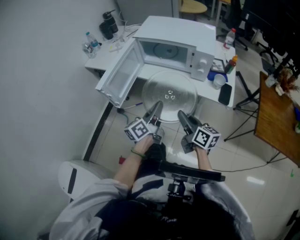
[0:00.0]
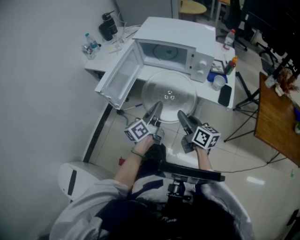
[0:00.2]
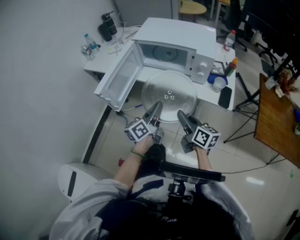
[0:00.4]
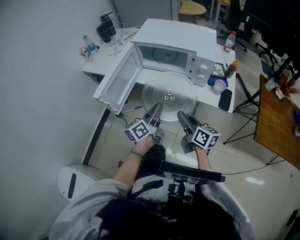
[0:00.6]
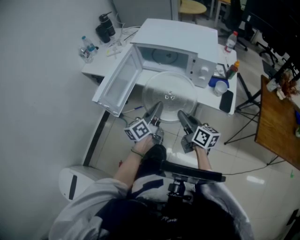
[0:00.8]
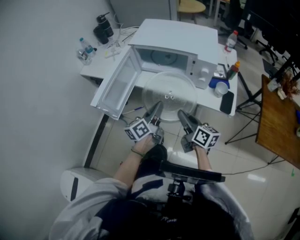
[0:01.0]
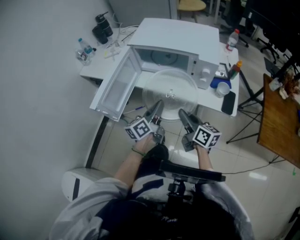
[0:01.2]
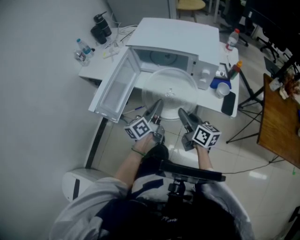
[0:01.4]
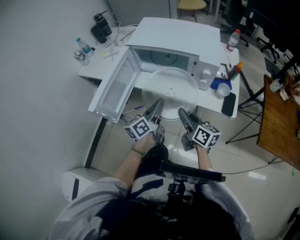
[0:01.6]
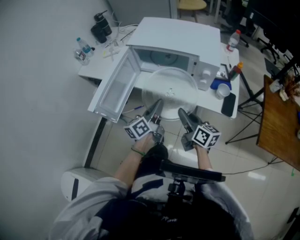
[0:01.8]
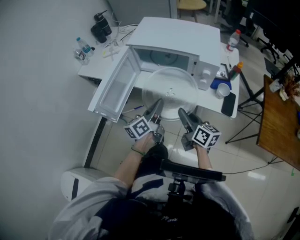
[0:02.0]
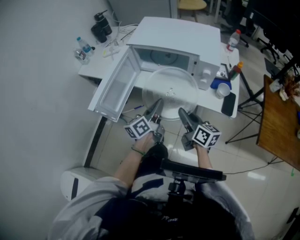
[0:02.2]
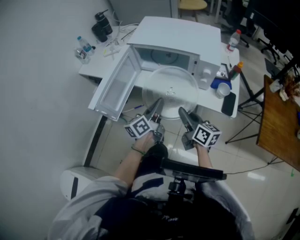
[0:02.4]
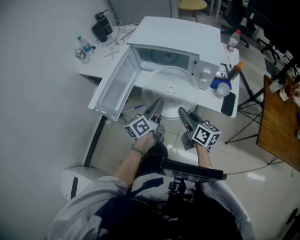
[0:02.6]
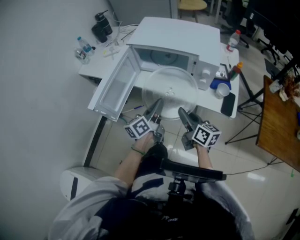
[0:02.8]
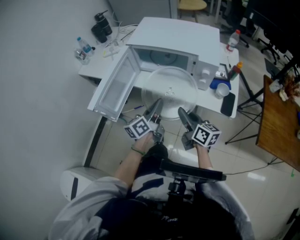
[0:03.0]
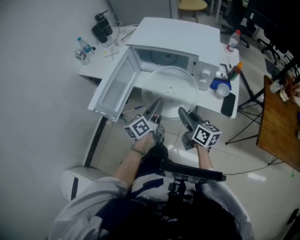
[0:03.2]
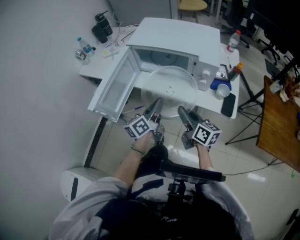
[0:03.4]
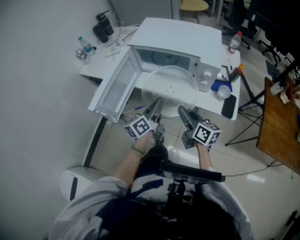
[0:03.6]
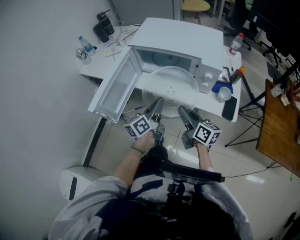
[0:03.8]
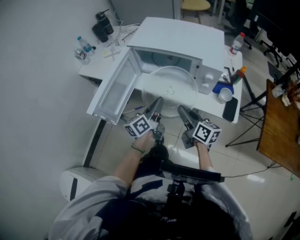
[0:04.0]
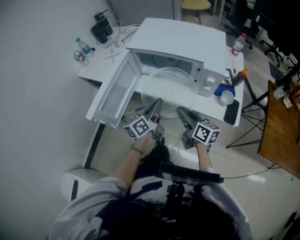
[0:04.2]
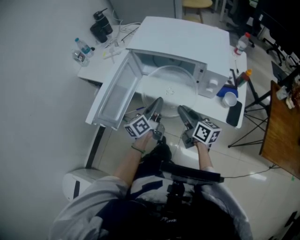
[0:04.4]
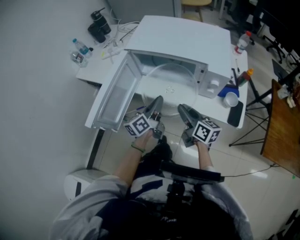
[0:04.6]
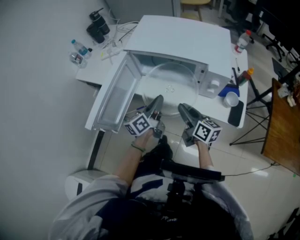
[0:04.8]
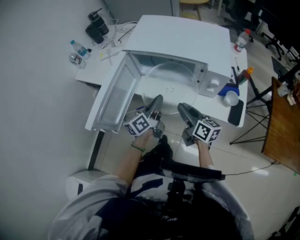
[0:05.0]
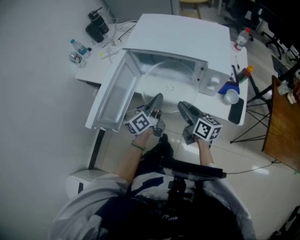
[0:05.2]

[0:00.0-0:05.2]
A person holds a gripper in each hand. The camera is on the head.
0:00.0 to 0:01.8: Both grippers travel together forward, some 10 cm.
0:01.8 to 0:03.4: The two grippers keep their place.
0:03.4 to 0:05.2: Both grippers travel together forward, about 10 cm.

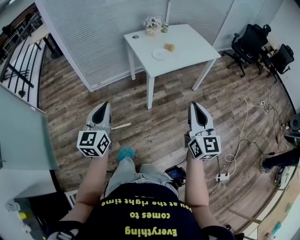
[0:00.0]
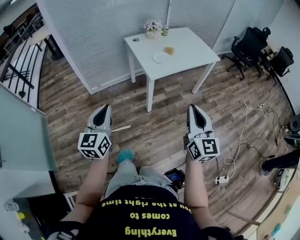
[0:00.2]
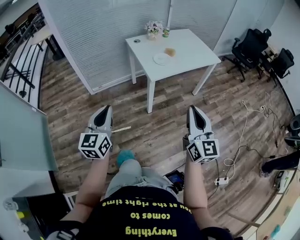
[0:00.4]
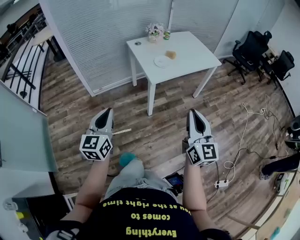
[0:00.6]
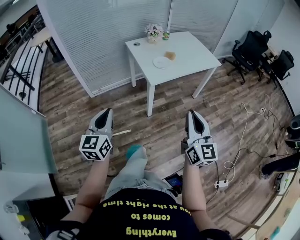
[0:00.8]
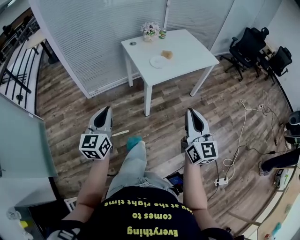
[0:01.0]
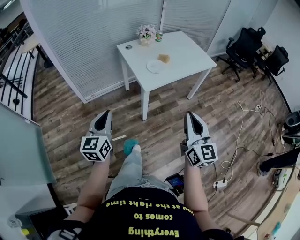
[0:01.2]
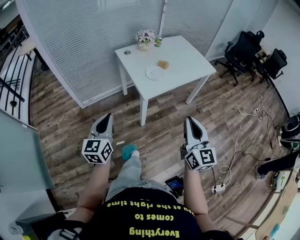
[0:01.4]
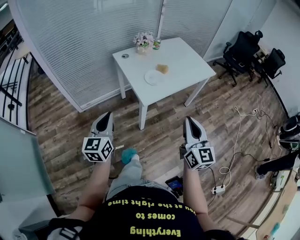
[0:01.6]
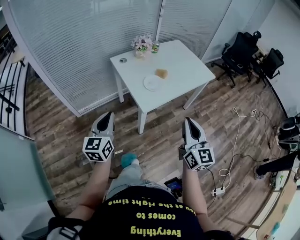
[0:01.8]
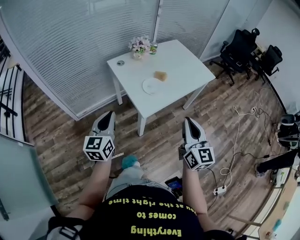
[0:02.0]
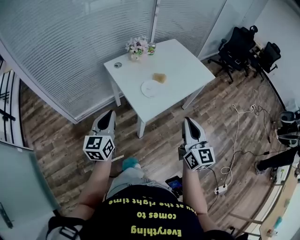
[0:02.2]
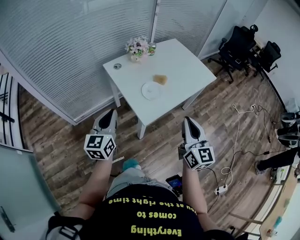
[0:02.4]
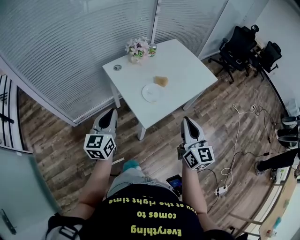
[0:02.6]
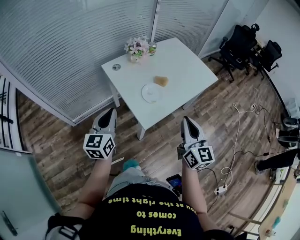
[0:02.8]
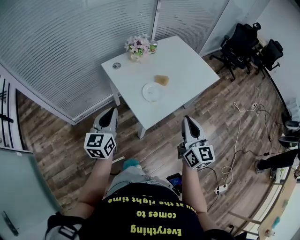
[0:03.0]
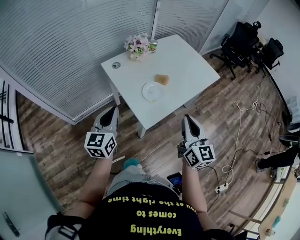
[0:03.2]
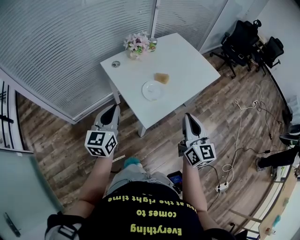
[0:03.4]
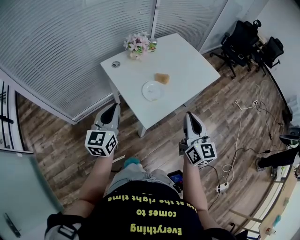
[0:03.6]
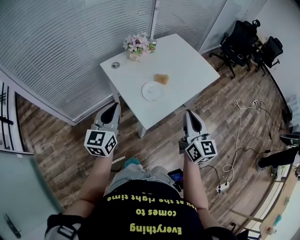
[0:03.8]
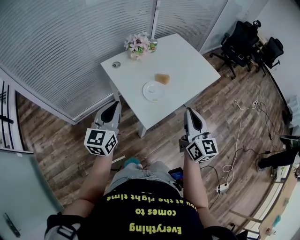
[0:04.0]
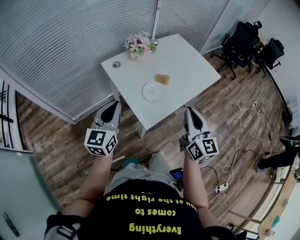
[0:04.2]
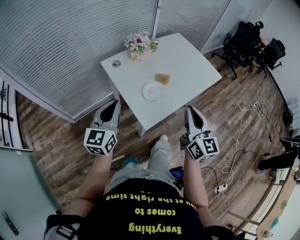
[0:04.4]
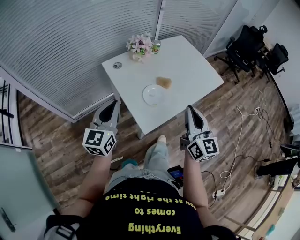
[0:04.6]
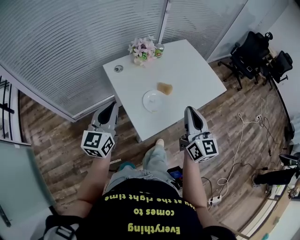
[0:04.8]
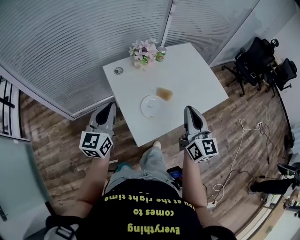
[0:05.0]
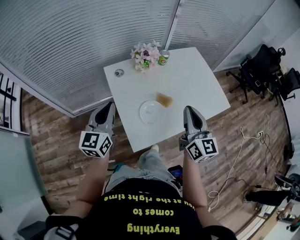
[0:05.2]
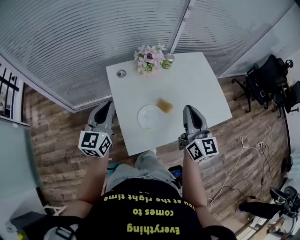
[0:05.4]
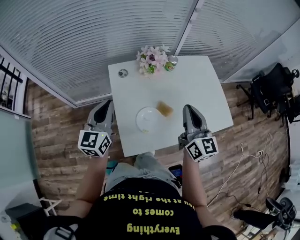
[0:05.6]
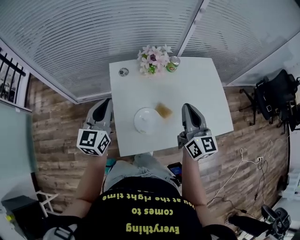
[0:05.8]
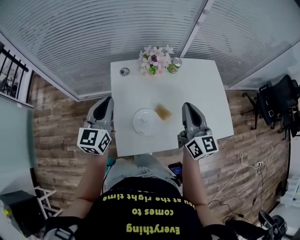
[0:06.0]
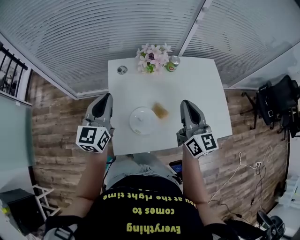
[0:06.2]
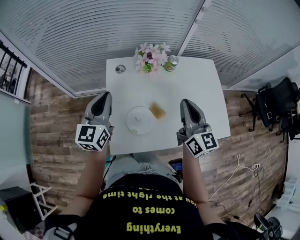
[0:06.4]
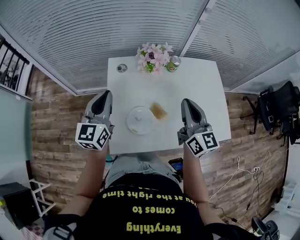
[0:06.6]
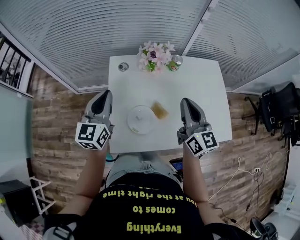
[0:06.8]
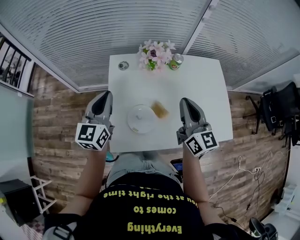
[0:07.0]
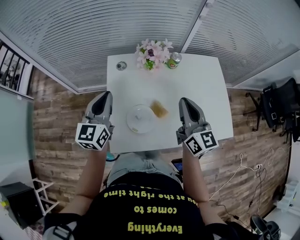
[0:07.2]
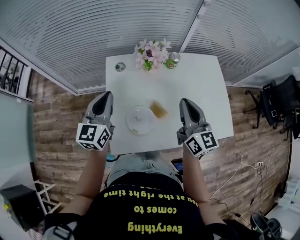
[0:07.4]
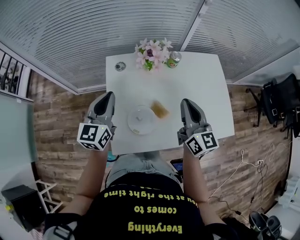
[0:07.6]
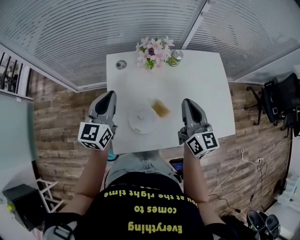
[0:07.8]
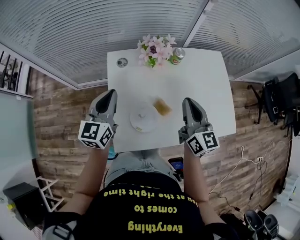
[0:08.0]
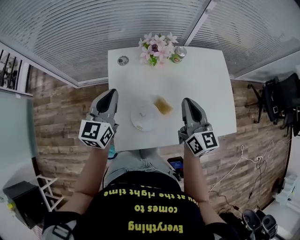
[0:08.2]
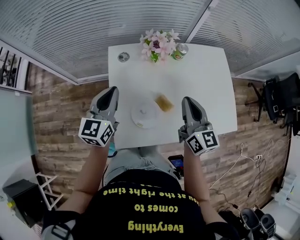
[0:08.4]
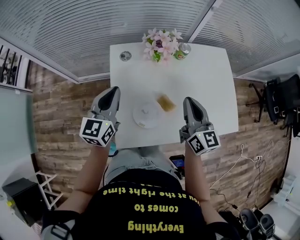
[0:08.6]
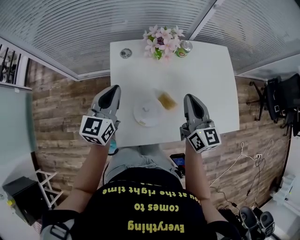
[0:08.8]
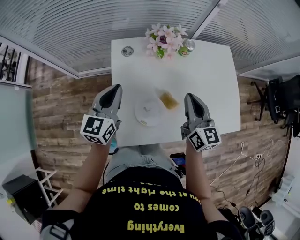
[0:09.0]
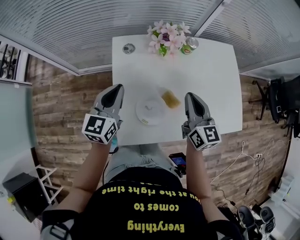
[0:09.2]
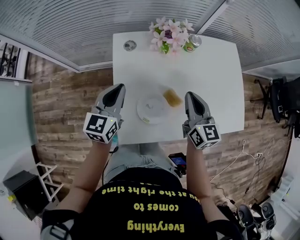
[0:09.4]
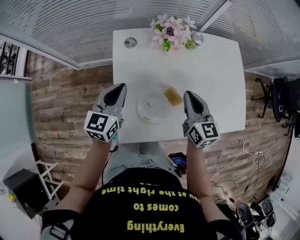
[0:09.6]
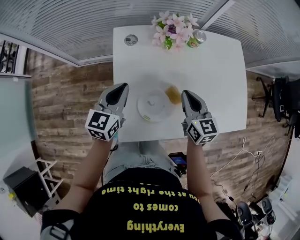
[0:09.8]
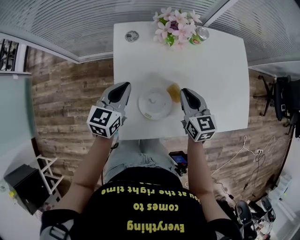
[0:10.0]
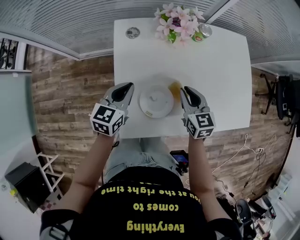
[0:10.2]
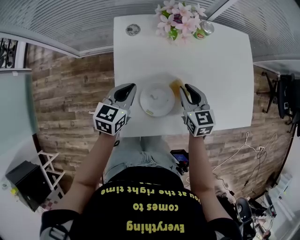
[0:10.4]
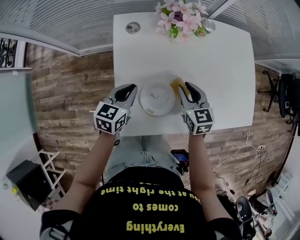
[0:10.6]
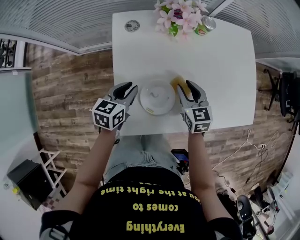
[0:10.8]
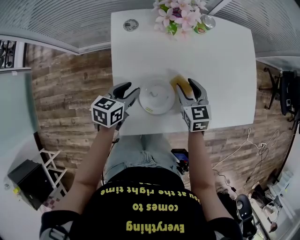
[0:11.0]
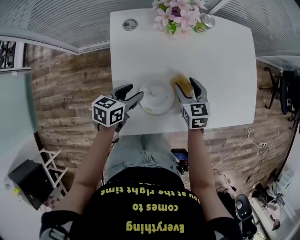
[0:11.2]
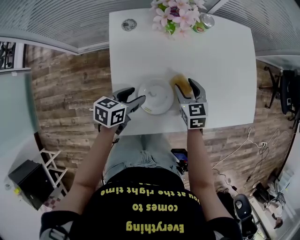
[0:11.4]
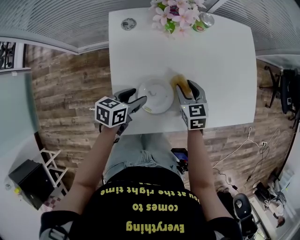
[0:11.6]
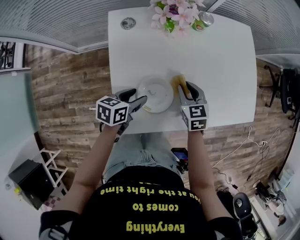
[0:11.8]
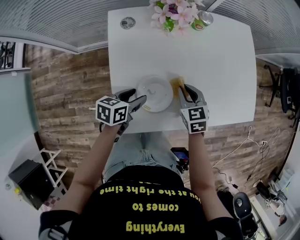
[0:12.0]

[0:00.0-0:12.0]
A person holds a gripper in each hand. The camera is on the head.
0:00.0 to 0:01.6: The grippers both shift forward by approximately 20 cm.
0:01.6 to 0:03.0: The grippers both shift forward by about 20 cm.
0:03.0 to 0:04.4: The grippers stay close to where they were, moving slightly.
0:04.4 to 0:06.0: The right gripper ends up about 30 cm from where it was, and swivels roughly 30 degrees. Meanwhile the left gripper changes place by about 15 cm, and rotates about 30 degrees.
0:06.0 to 0:07.6: The grippers stay close to where they were, moving slightly.
0:07.6 to 0:09.0: The right gripper ends up roughly 5 cm from where it was.
0:09.0 to 0:10.4: The two grippers go some 15 cm downward. The left gripper turns by about 20 degrees; the right gripper swivels approximately 30 degrees.
0:10.4 to 0:12.0: Both grippers move downward, approximately 5 cm. The left gripper rotates about 30 degrees, and opens; the right gripper opens, then closes once more.

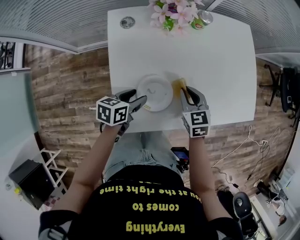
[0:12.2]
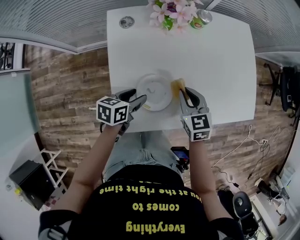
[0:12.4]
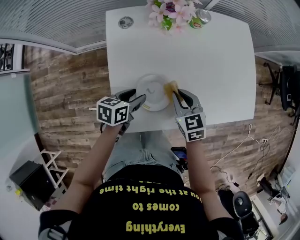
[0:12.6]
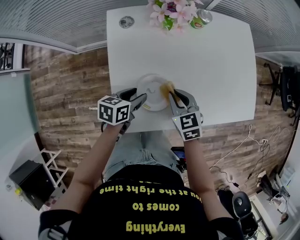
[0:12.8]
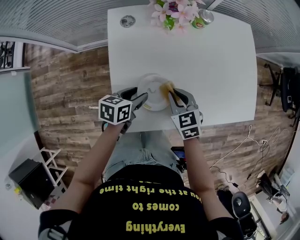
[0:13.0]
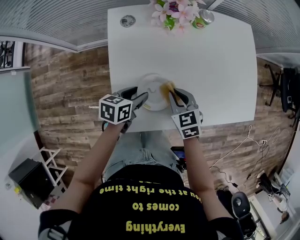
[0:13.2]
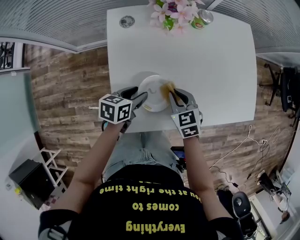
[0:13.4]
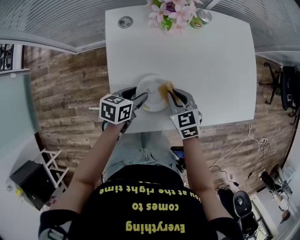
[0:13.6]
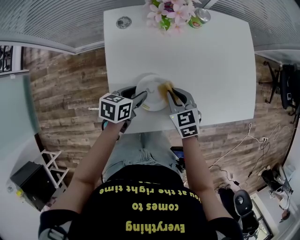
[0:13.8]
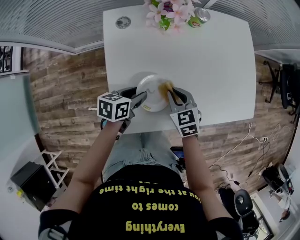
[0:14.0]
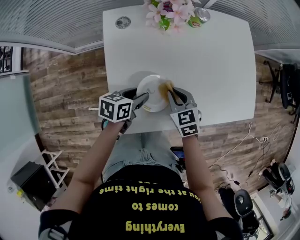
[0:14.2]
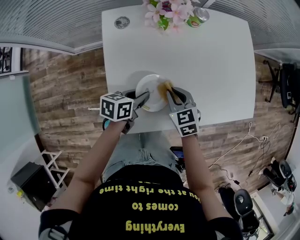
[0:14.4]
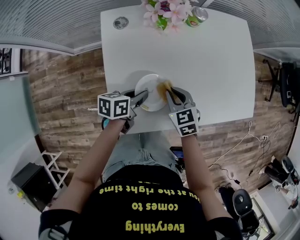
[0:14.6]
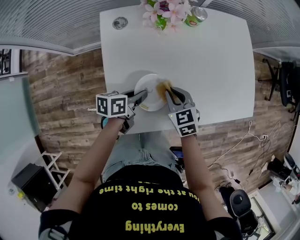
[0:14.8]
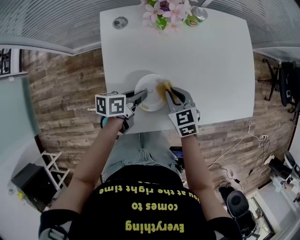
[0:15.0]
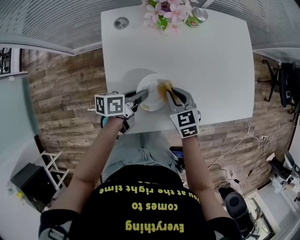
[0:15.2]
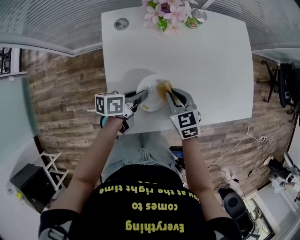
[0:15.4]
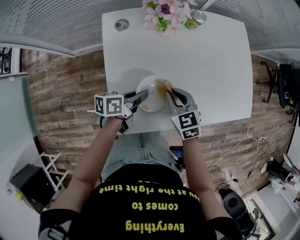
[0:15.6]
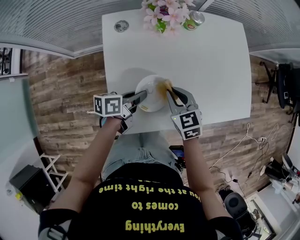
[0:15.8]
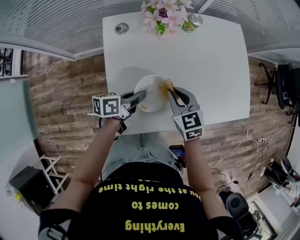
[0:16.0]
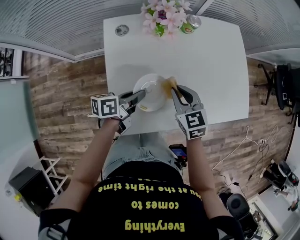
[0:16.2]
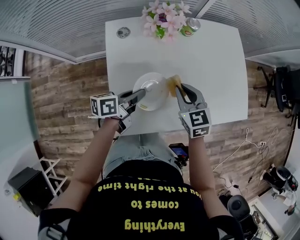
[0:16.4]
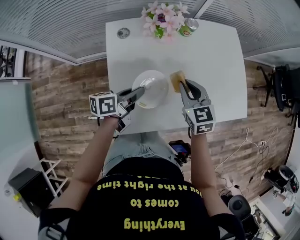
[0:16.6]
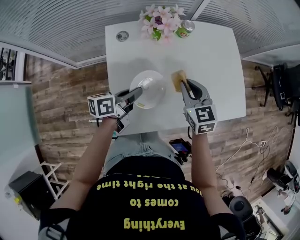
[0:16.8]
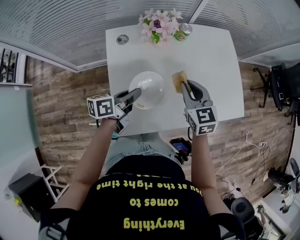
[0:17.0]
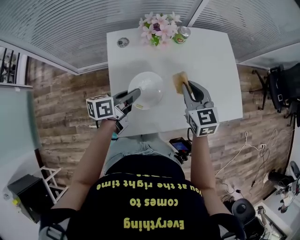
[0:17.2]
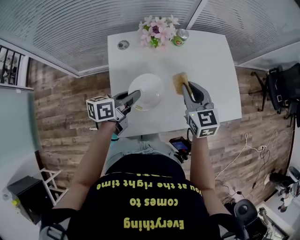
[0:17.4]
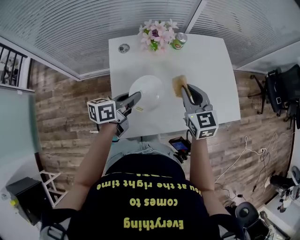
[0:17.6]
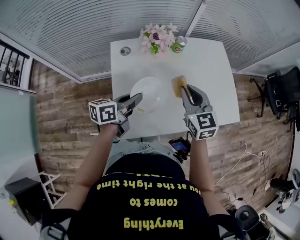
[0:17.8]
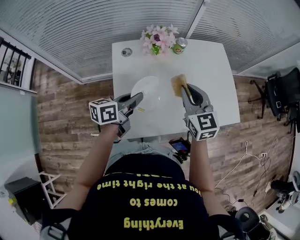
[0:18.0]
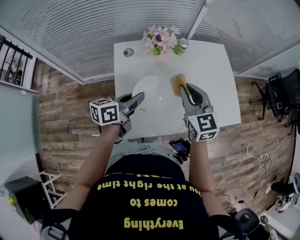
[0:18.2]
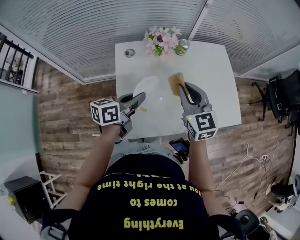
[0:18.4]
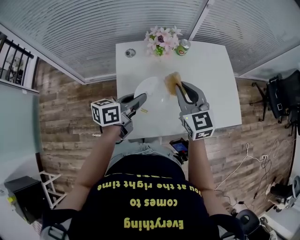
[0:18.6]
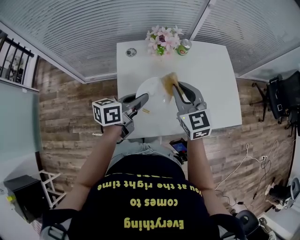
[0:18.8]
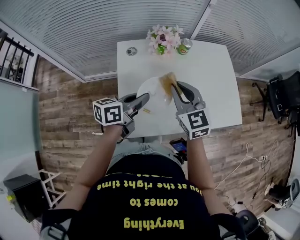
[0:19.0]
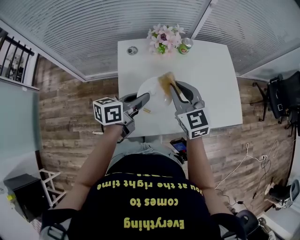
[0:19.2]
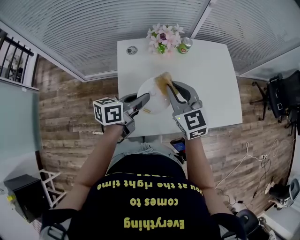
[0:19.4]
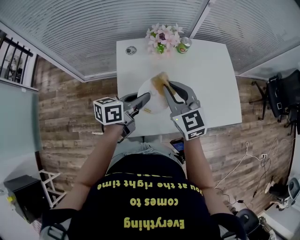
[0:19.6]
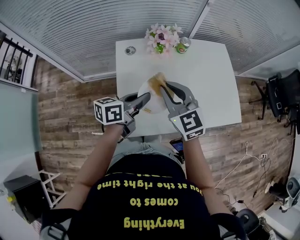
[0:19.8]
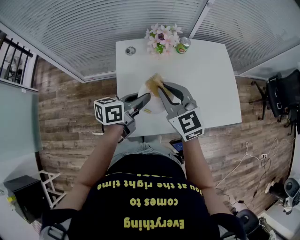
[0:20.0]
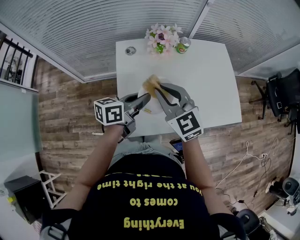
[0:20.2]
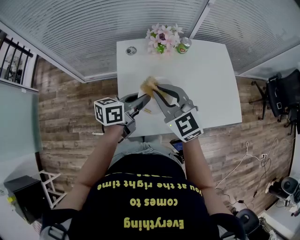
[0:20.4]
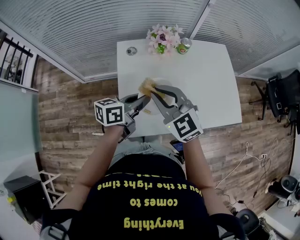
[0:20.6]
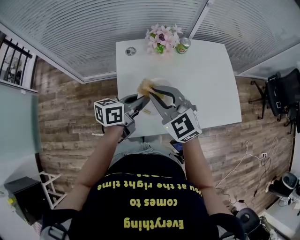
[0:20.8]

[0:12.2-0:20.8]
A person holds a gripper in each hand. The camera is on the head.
0:12.2 to 0:13.6: The right gripper ends up roughly 5 cm from where it was.
0:13.6 to 0:15.0: The left gripper changes its angle by about 20 degrees, and closes its fingers.
0:15.0 to 0:16.6: The left gripper goes about 10 cm upward. Meanwhile the right gripper is displaced upward and forward by about 10 cm.
0:16.6 to 0:18.0: The grippers both shift upward by some 10 cm.
0:18.0 to 0:19.4: The right gripper goes some 10 cm to the left.
0:19.4 to 0:20.8: The right gripper is displaced to the left by about 5 cm, and swivels about 20 degrees.
